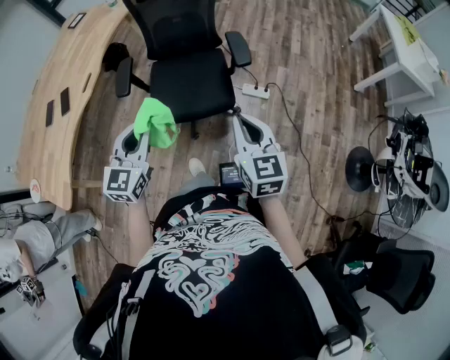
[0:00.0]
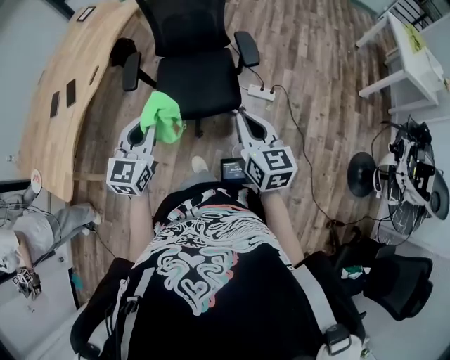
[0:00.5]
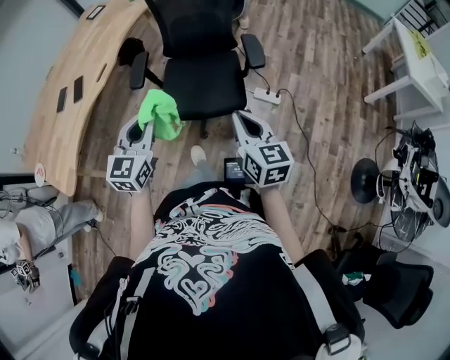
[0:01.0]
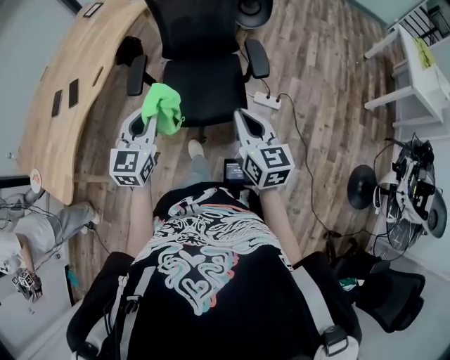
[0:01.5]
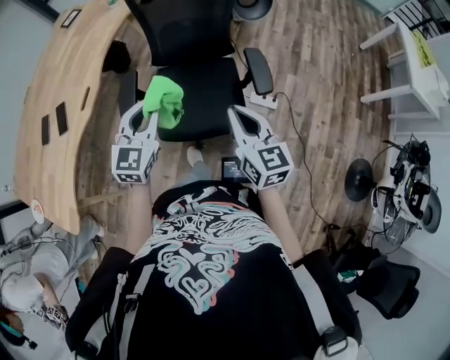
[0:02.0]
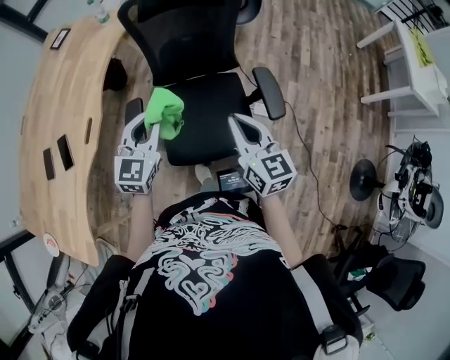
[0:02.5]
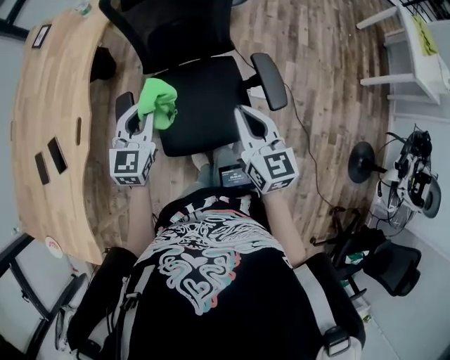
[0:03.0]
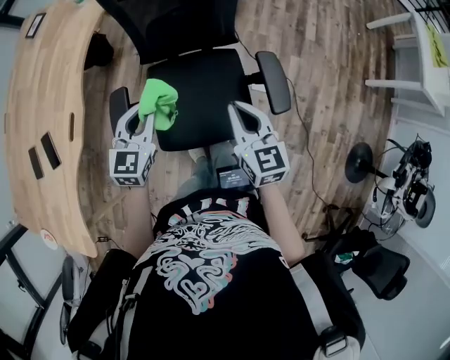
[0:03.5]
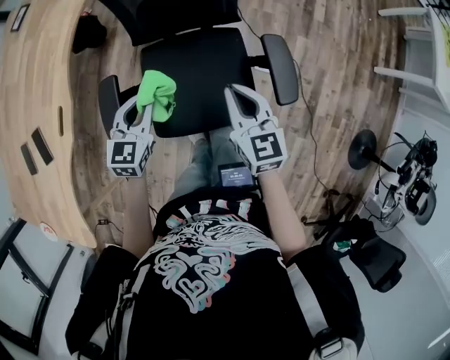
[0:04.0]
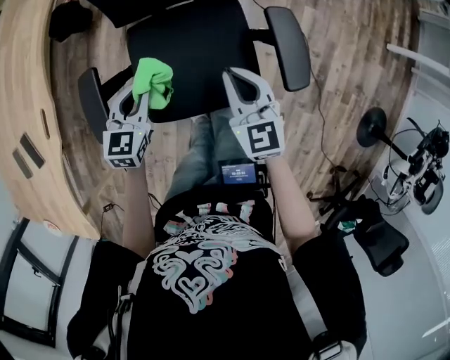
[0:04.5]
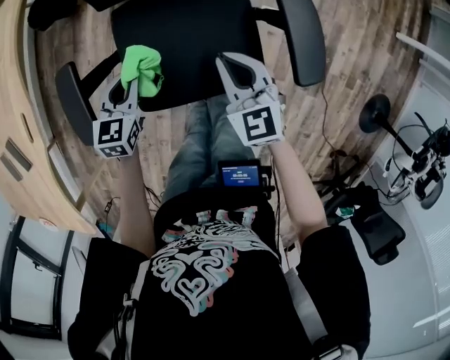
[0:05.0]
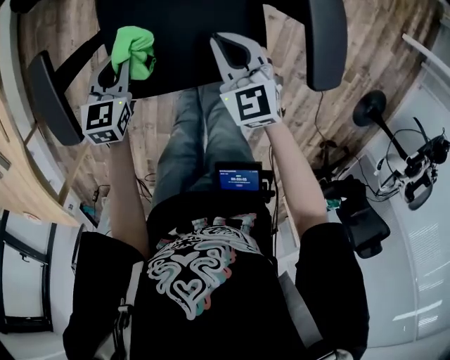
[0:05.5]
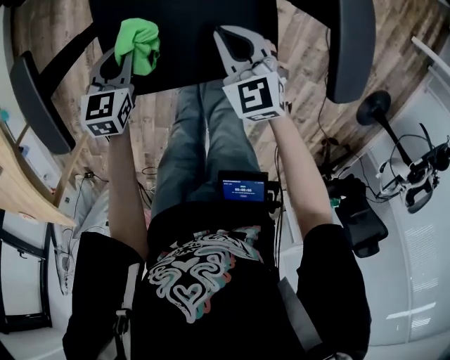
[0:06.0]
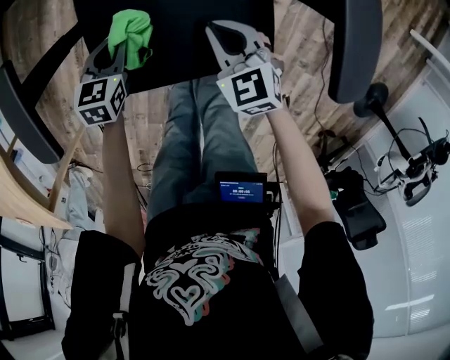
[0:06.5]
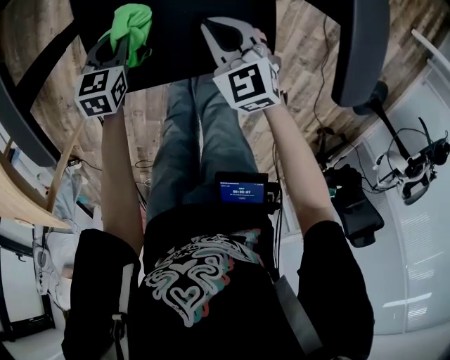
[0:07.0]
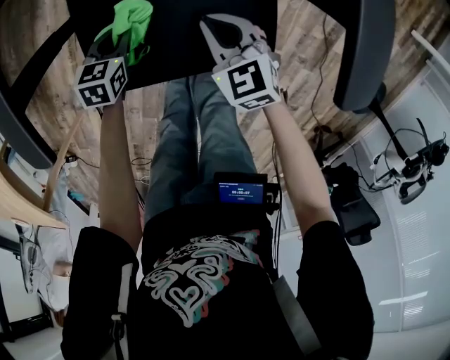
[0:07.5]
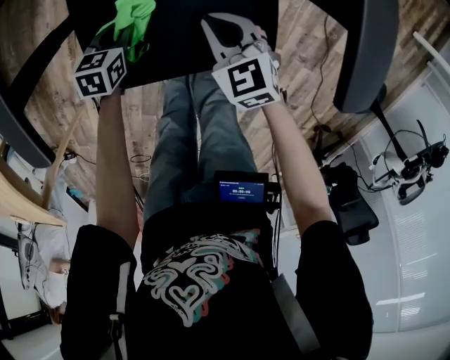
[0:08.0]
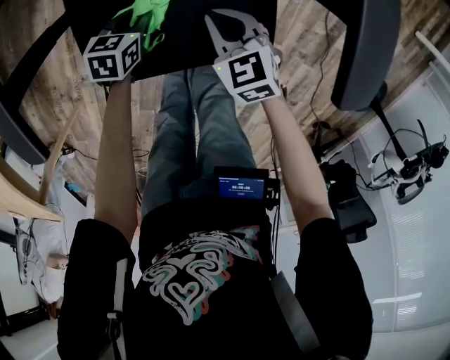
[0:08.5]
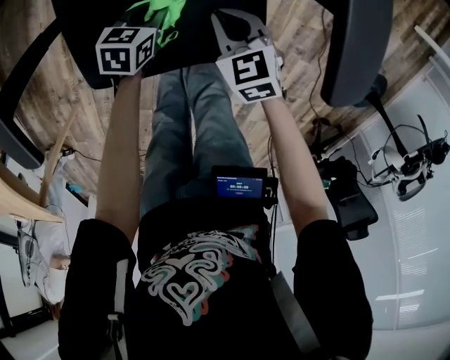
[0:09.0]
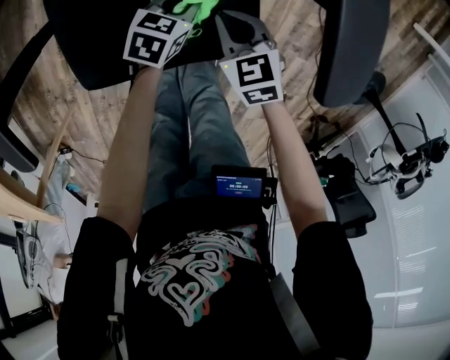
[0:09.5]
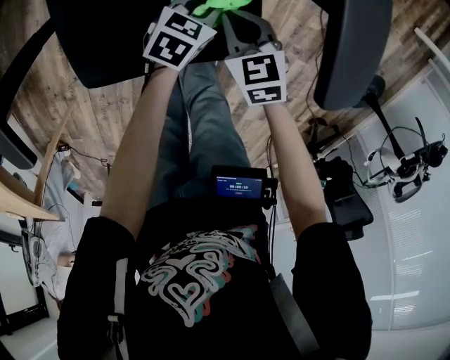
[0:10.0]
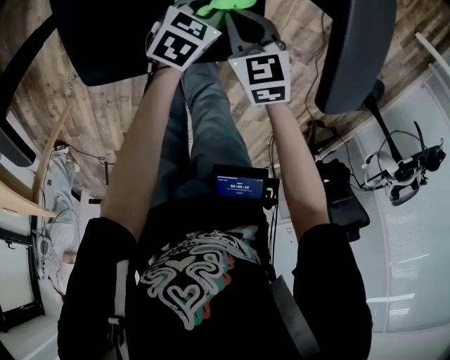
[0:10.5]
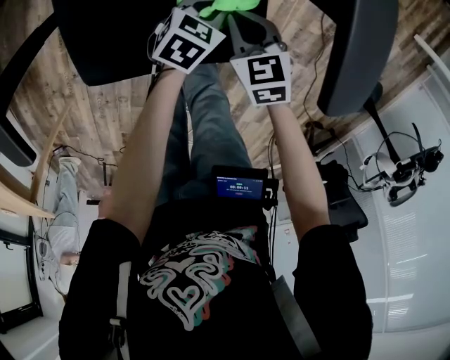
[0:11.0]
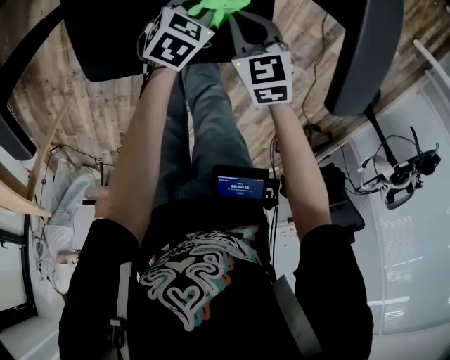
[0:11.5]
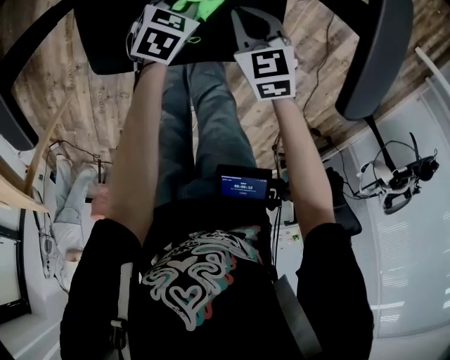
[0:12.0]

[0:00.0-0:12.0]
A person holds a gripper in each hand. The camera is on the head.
0:00.0 to 0:02.0: The two grippers go some 20 cm forward.
0:02.0 to 0:04.0: The left gripper shifts about 25 cm downward and forward, and turns by approximately 20 degrees. Meanwhile the right gripper goes approximately 25 cm forward and downward.
0:04.0 to 0:06.0: The grippers both shift downward by approximately 30 cm. The right gripper swivels roughly 30 degrees, while the left gripper changes its angle by about 20 degrees.
0:06.0 to 0:08.0: The right gripper changes place by roughly 5 cm; the left gripper heads downward, covering some 10 cm.
0:08.0 to 0:10.0: The right gripper goes approximately 5 cm to the right. Meanwhile the left gripper is displaced to the right by about 20 cm, and changes its angle by about 30 degrees.
0:10.0 to 0:12.0: The left gripper goes roughly 10 cm to the left.

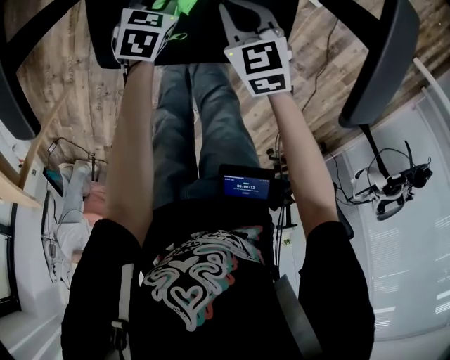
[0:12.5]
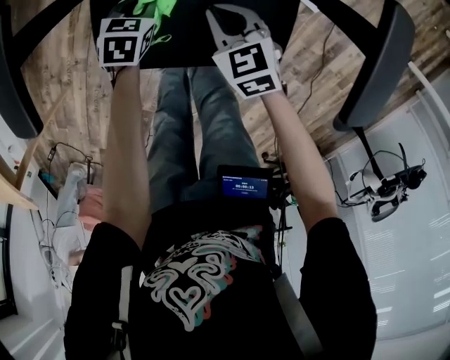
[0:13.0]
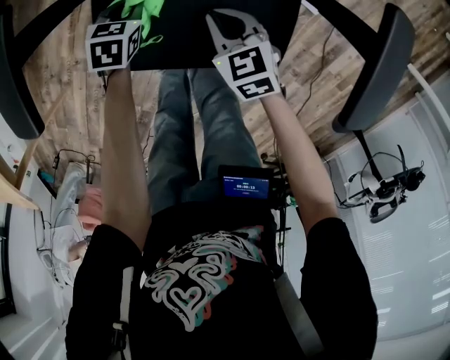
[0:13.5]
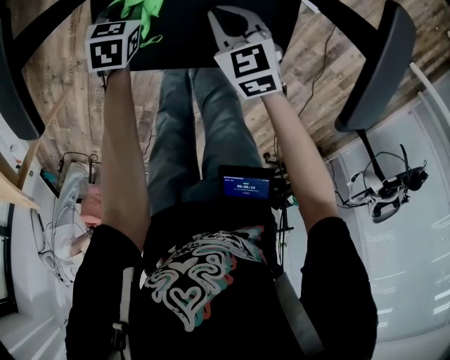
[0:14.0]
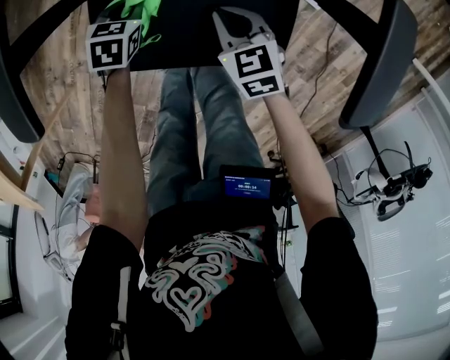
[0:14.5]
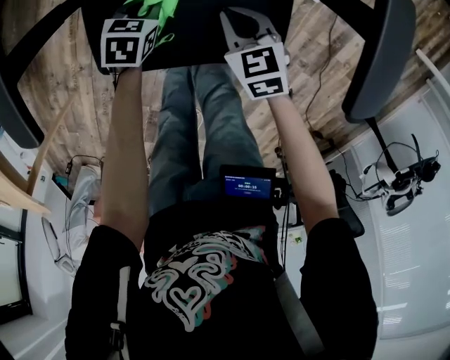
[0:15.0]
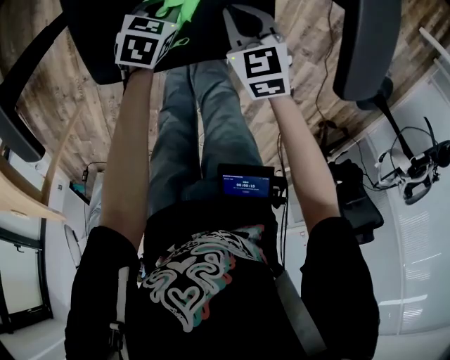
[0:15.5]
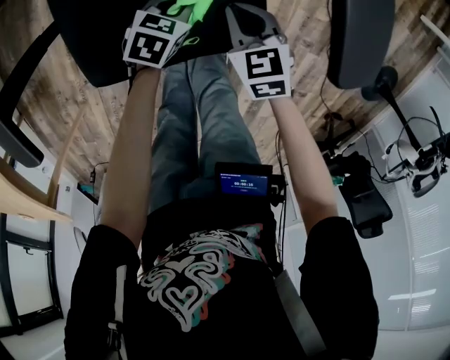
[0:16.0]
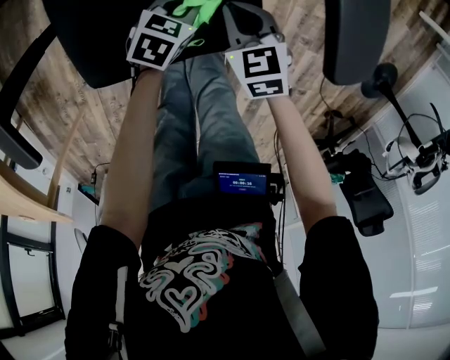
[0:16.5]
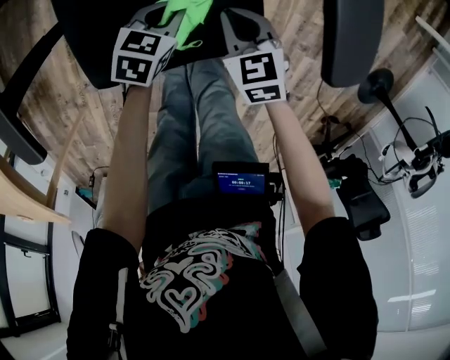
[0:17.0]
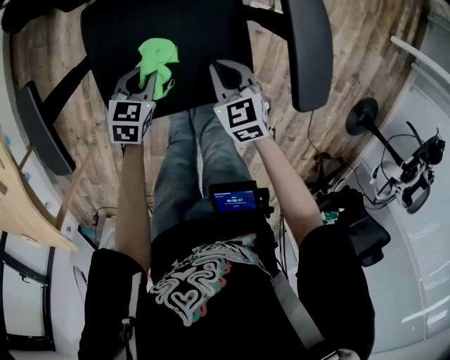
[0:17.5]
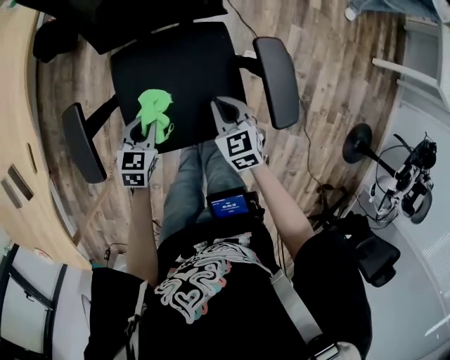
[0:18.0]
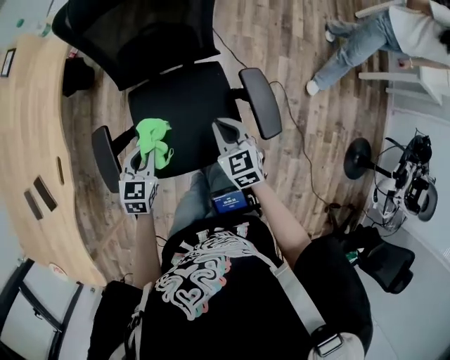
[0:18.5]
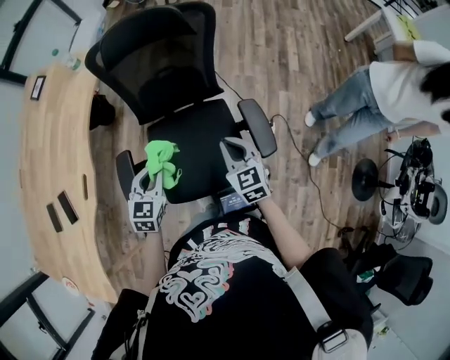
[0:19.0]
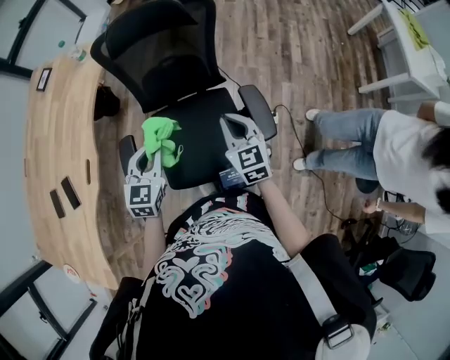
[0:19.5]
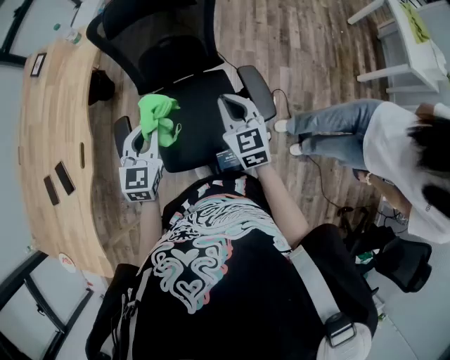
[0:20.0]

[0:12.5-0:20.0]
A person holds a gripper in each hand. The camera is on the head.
0:12.5 to 0:14.5: The left gripper goes approximately 10 cm to the left.
0:14.5 to 0:16.5: The left gripper ends up roughly 25 cm from where it was, and turns by about 30 degrees, while the right gripper changes place by about 10 cm.
0:16.5 to 0:18.0: The left gripper is displaced upward and to the left by roughly 25 cm, and turns by approximately 30 degrees, while the right gripper heads upward, covering some 15 cm.
0:18.0 to 0:20.0: The two grippers go some 30 cm upward. The right gripper swivels some 20 degrees, while the left gripper swivels some 30 degrees.

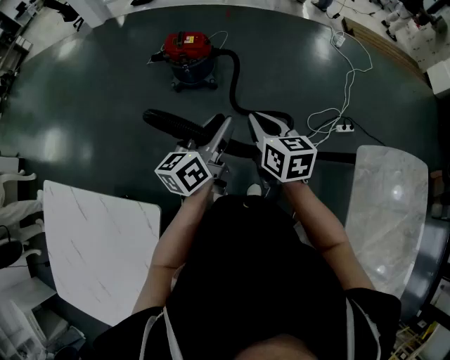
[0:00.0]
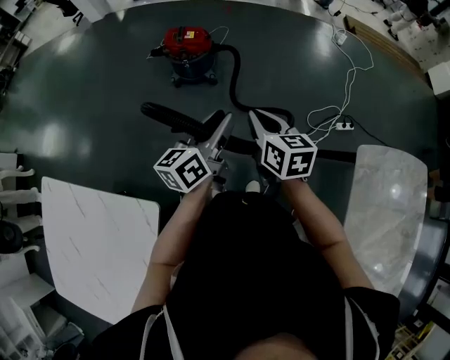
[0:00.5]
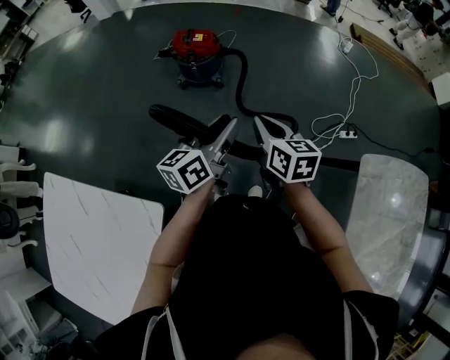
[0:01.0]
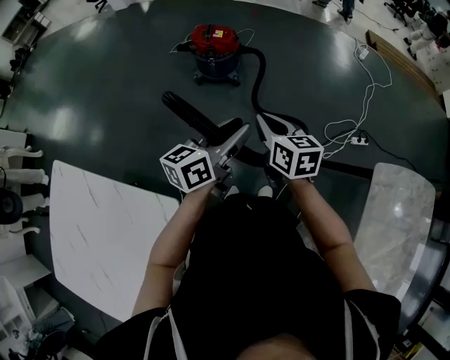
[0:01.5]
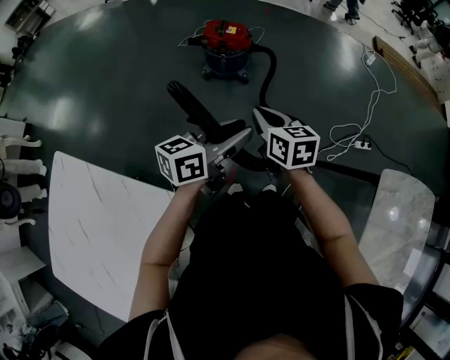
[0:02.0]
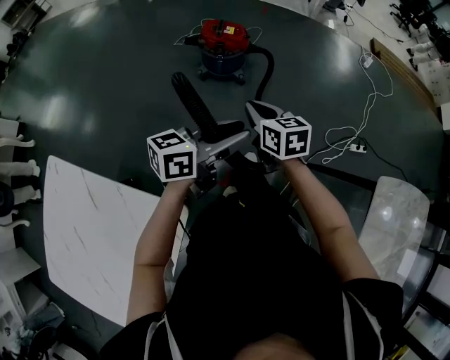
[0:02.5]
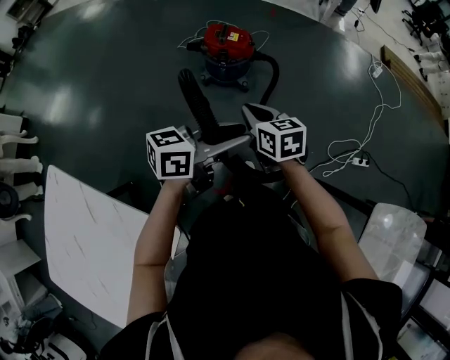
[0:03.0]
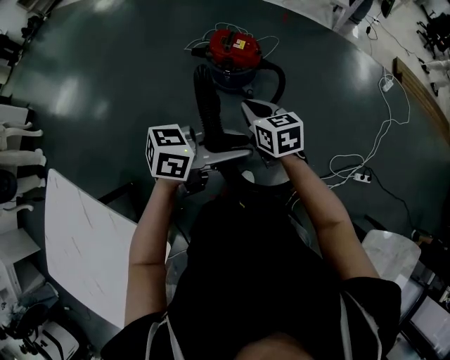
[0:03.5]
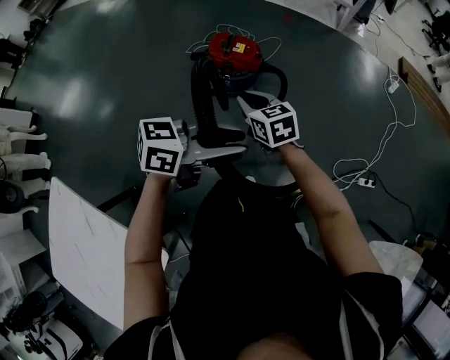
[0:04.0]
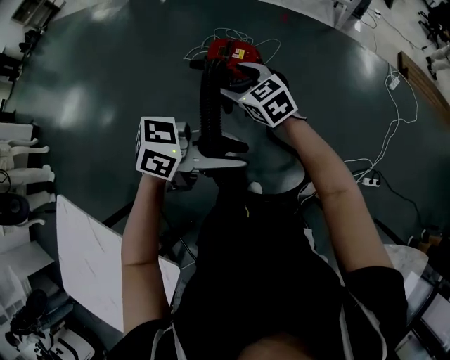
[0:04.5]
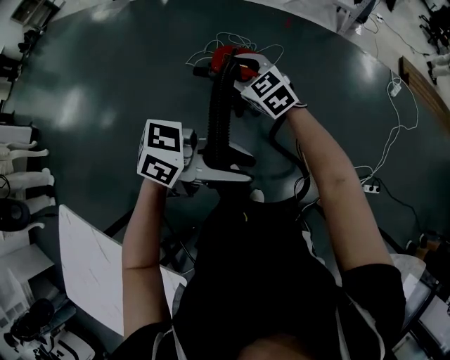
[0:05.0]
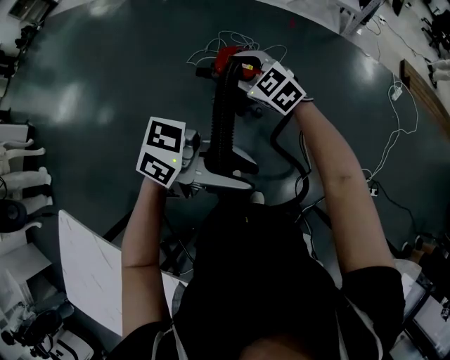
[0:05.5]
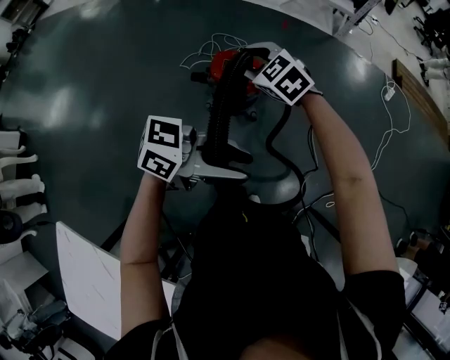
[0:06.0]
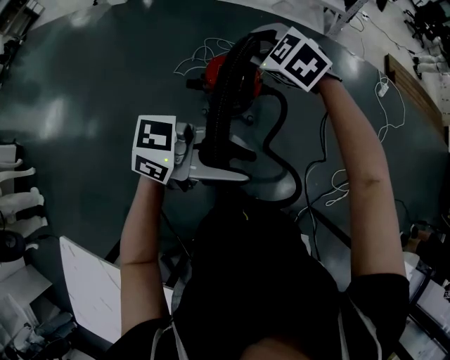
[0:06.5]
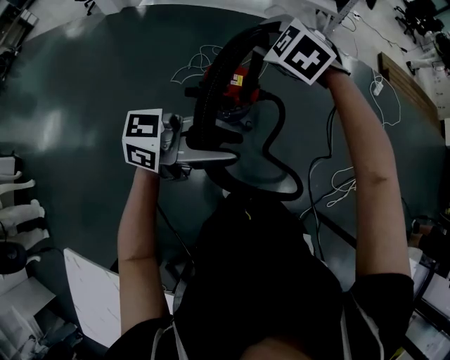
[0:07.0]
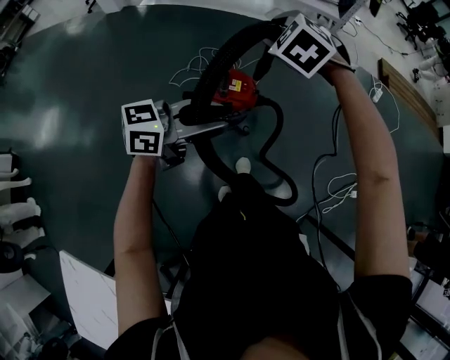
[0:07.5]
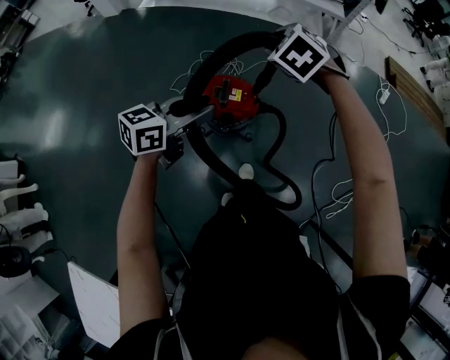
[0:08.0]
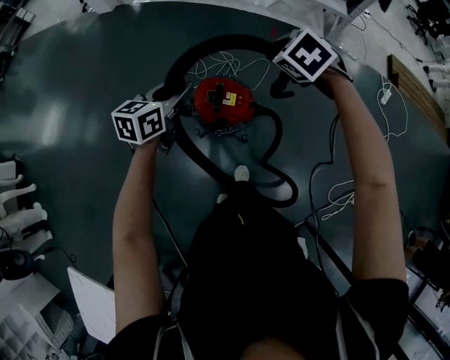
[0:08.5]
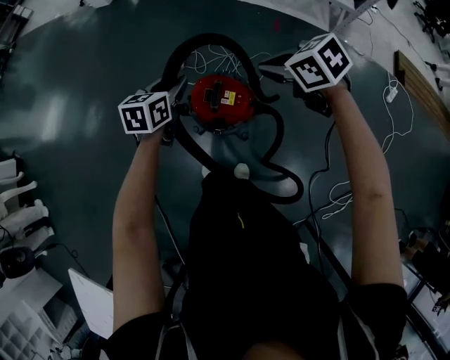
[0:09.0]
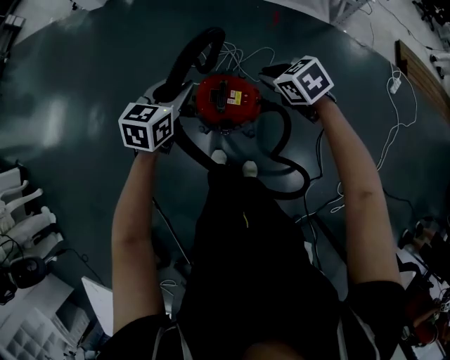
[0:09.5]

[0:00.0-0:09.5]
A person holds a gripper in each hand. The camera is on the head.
0:00.0 to 0:02.0: The two grippers go about 15 cm to the left.
0:02.0 to 0:04.0: The two grippers go about 25 cm forward. The left gripper rotates some 20 degrees.
0:04.0 to 0:05.5: The left gripper shifts by roughly 10 cm, and turns by approximately 20 degrees. Meanwhile the right gripper shifts by approximately 20 cm, changes its angle by some 40 degrees, and opens up.
0:05.5 to 0:07.5: The right gripper moves some 20 cm, and changes its angle by approximately 40 degrees. Meanwhile the left gripper ends up some 20 cm from where it was, and rotates roughly 20 degrees.
0:07.5 to 0:09.5: The right gripper goes roughly 20 cm downward, and turns by approximately 40 degrees. Meanwhile the left gripper moves approximately 35 cm, and rotates some 50 degrees.
